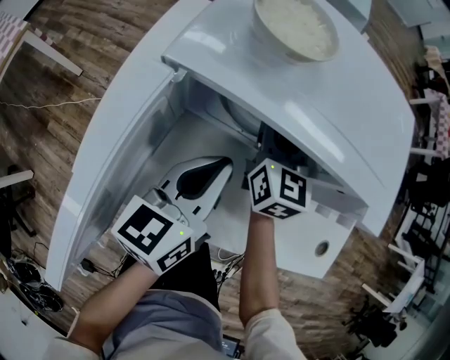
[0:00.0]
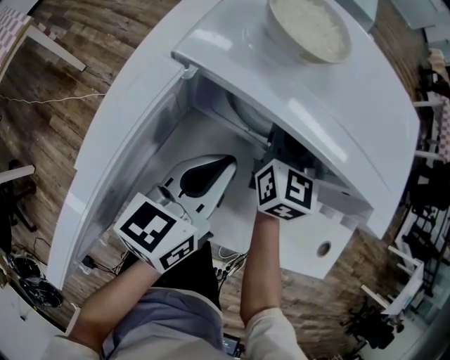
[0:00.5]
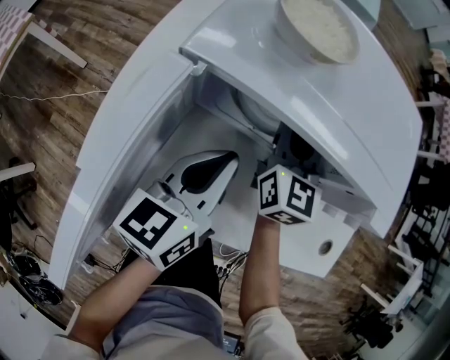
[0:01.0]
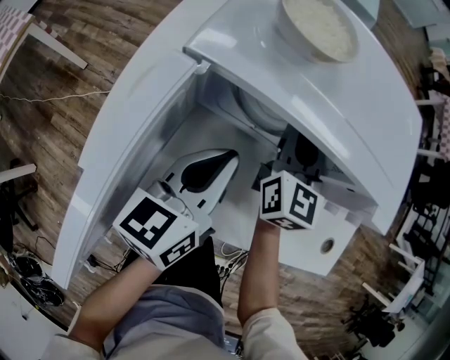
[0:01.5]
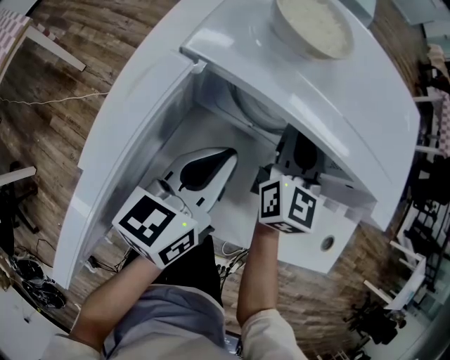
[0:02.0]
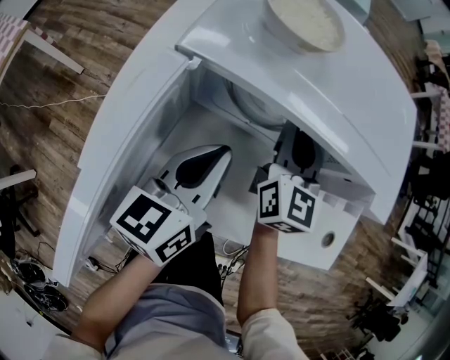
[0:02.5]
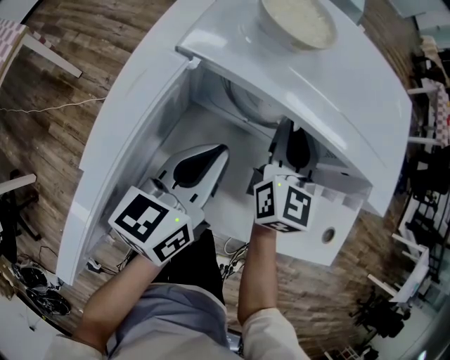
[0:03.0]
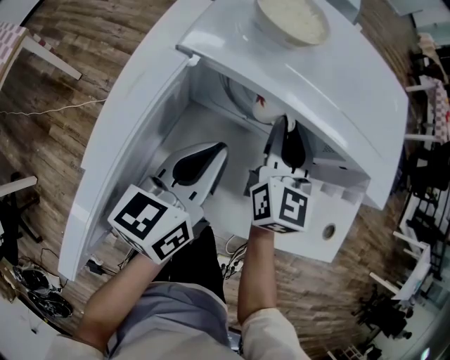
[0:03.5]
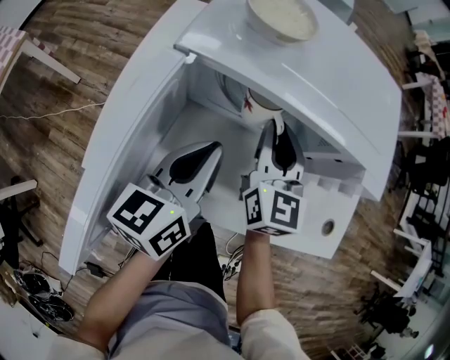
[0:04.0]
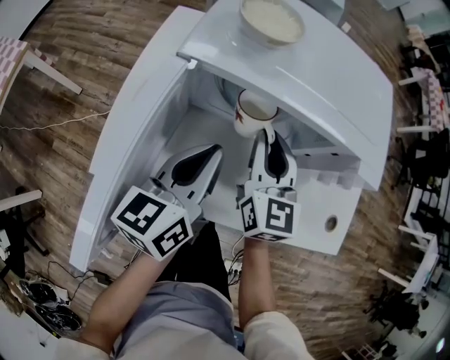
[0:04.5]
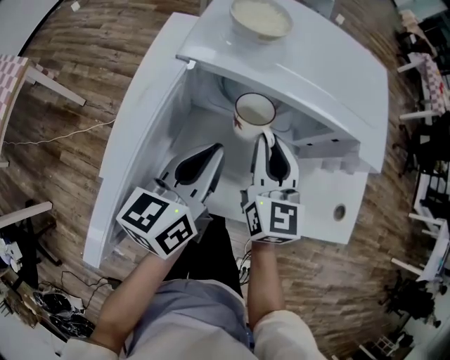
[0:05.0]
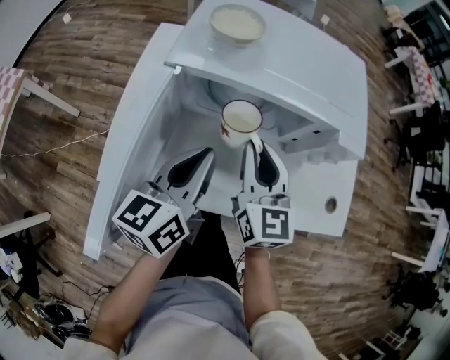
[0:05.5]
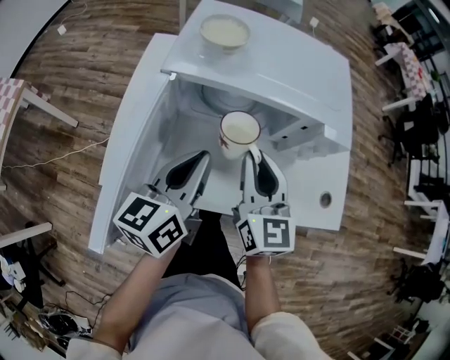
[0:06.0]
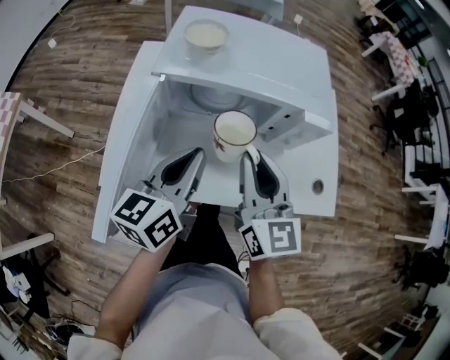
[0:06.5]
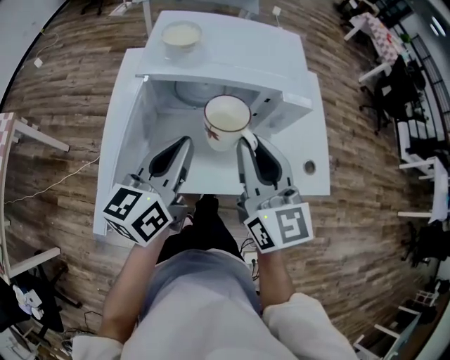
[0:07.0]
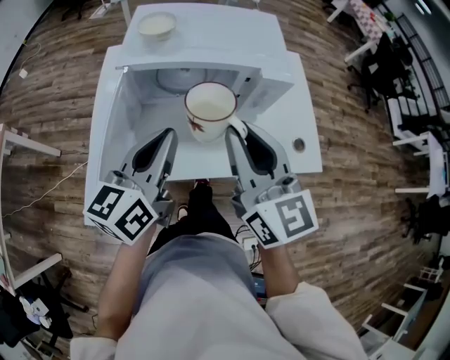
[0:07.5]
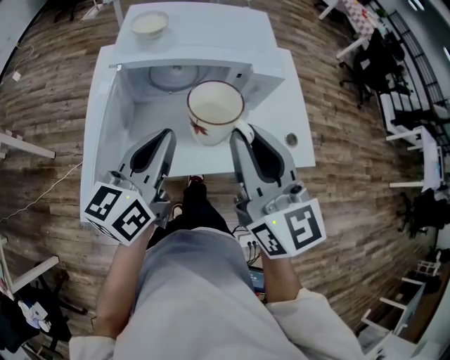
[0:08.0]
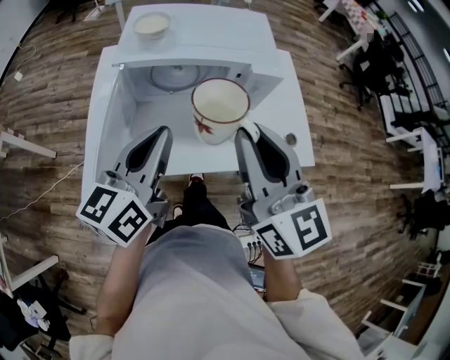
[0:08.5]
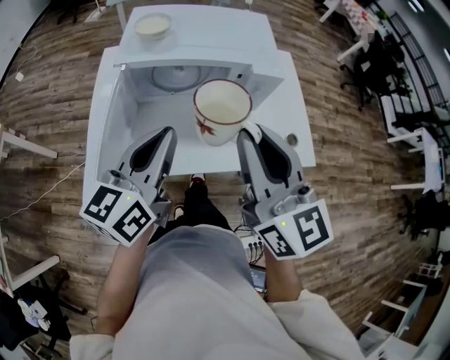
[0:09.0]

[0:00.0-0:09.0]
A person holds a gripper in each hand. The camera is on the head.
0:00.0 to 0:02.0: The grippers stay close to where they were, moving slightly.
0:02.0 to 0:04.5: The right gripper shifts roughly 10 cm backward.
0:04.5 to 0:07.0: The right gripper travels upward and backward by some 20 cm. The left gripper shifts about 15 cm upward and backward.
0:07.0 to 0:09.0: The left gripper changes place by approximately 5 cm. Meanwhile the right gripper goes some 10 cm upward and backward.

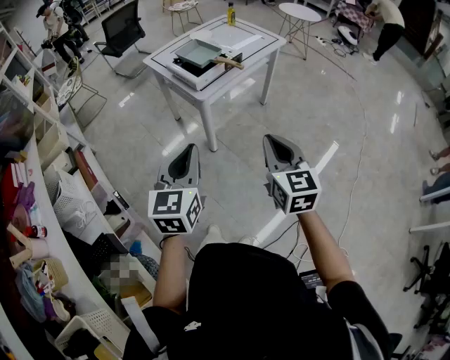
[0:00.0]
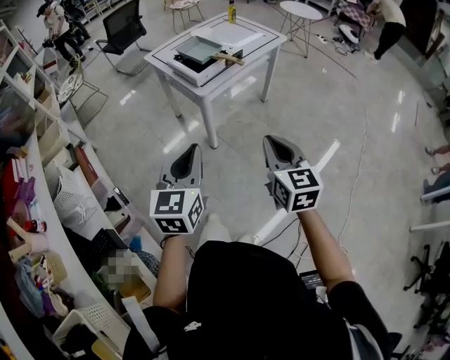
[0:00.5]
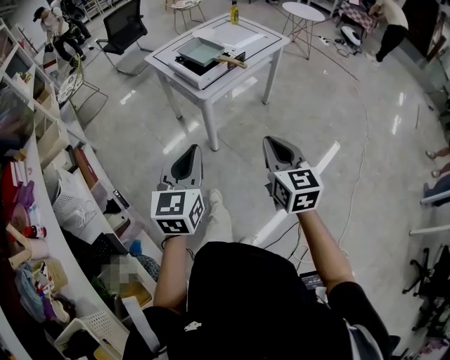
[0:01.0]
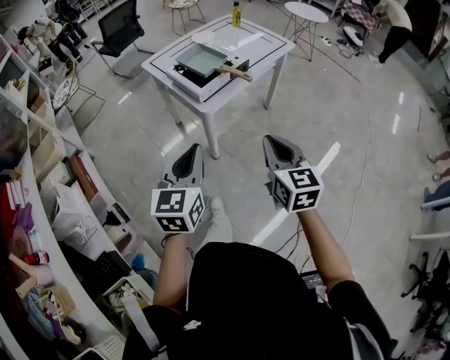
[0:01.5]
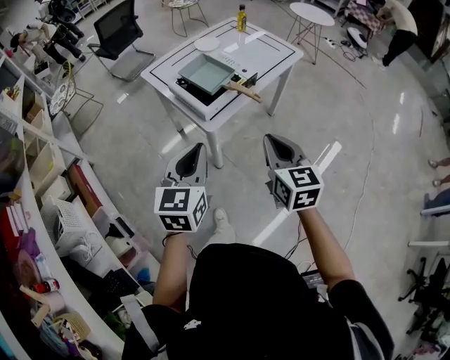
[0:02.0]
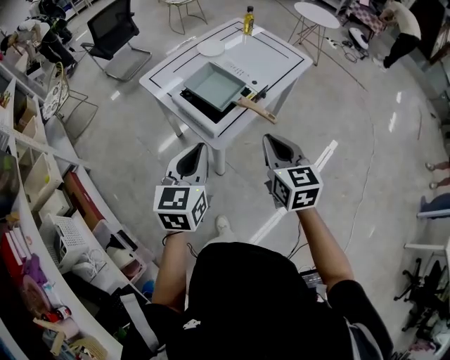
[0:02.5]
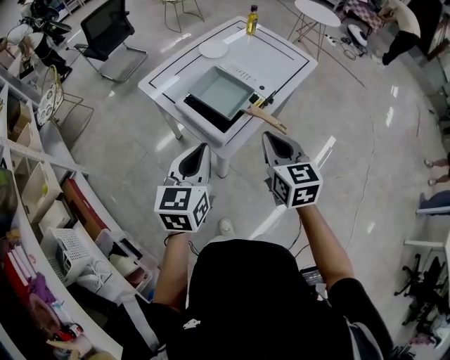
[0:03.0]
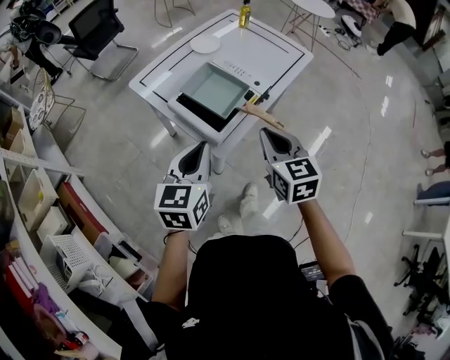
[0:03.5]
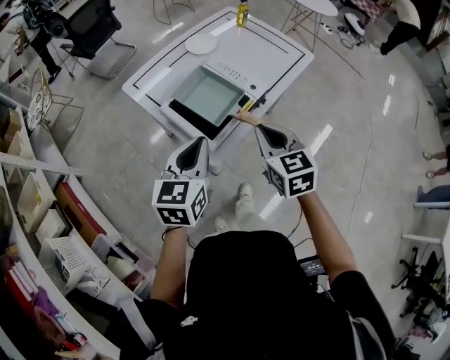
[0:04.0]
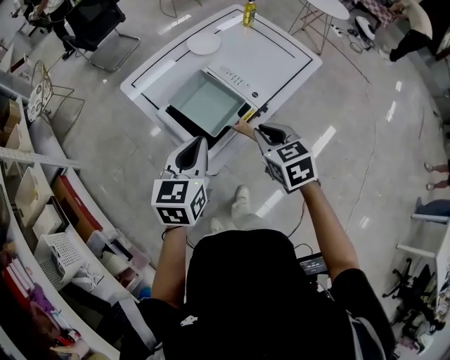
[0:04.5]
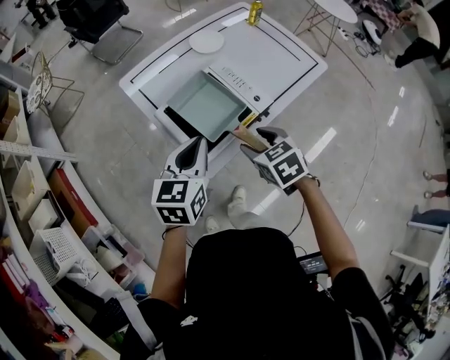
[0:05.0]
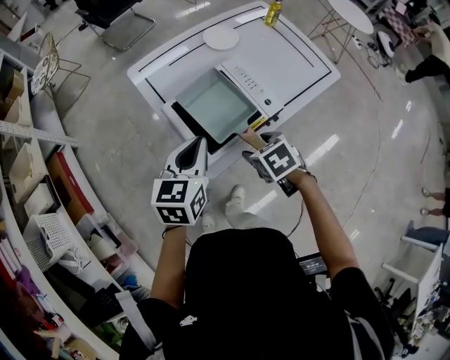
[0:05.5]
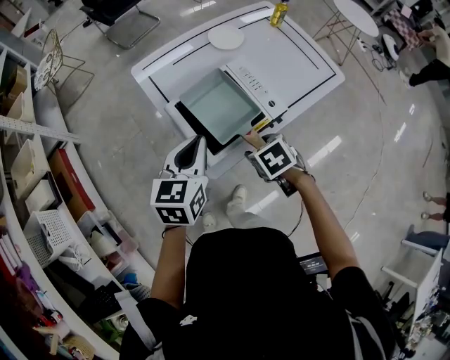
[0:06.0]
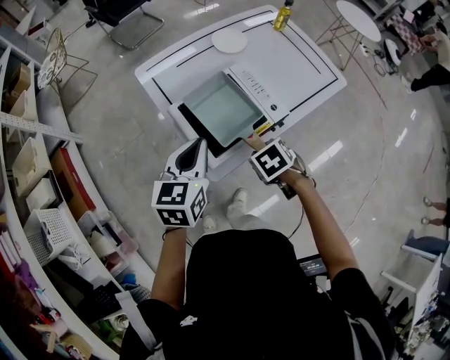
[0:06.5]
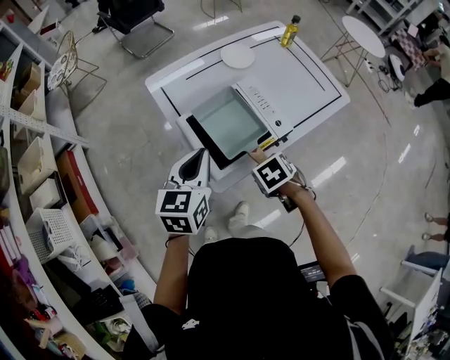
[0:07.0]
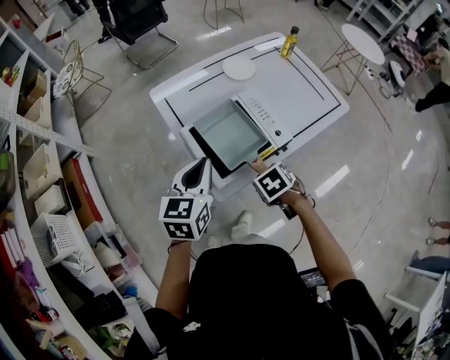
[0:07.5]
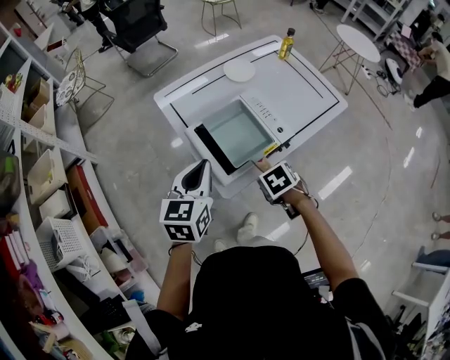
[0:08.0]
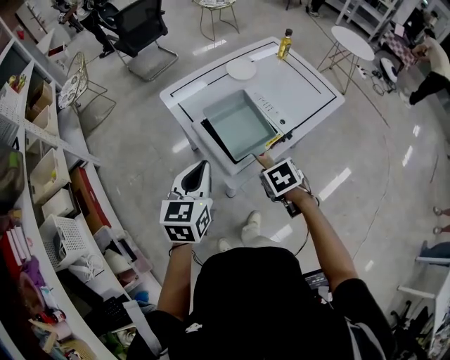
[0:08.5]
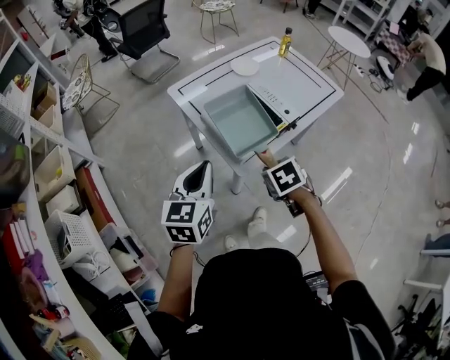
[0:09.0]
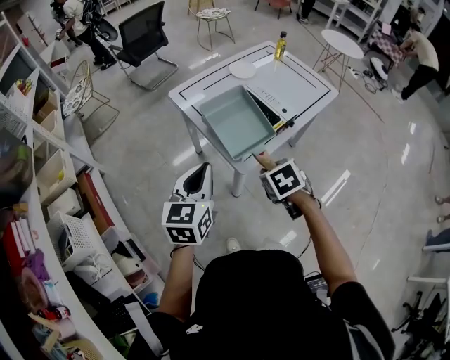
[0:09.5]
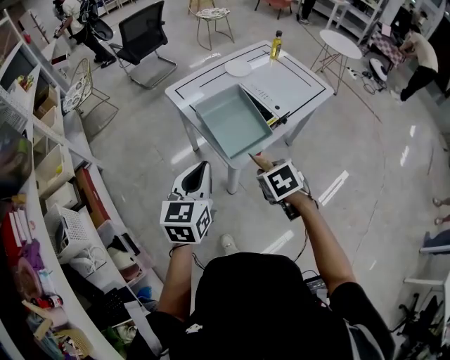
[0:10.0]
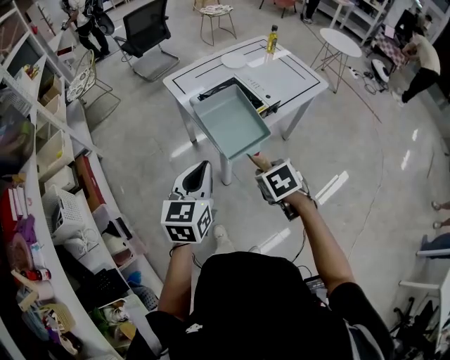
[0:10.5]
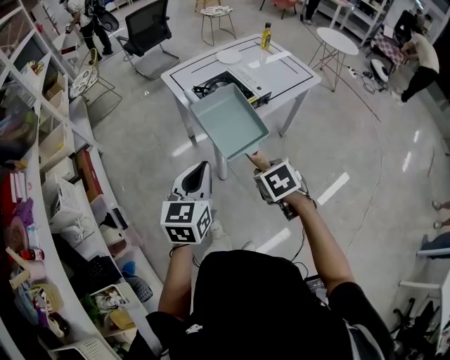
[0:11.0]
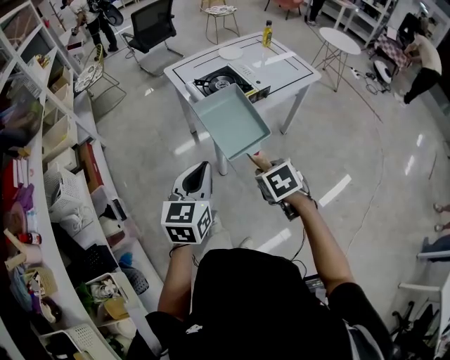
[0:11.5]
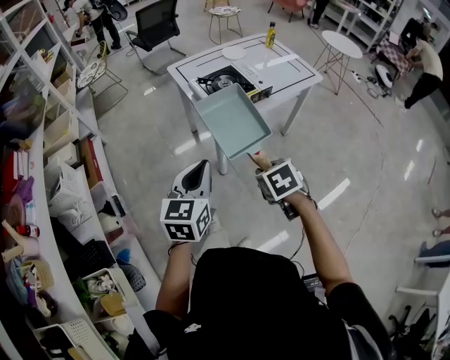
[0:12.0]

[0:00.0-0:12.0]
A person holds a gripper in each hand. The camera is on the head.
0:00.0 to 0:02.0: Both grippers travel together forward, approximately 25 cm.
0:02.0 to 0:04.0: Both grippers travel together forward, roughly 20 cm.
0:04.0 to 0:06.0: The left gripper goes approximately 10 cm forward. The right gripper shifts about 15 cm downward, tilts its fingers some 40 degrees downward, and opens up.
0:06.0 to 0:08.0: The left gripper changes place by roughly 5 cm. Meanwhile the right gripper closes.
0:08.0 to 0:10.0: The left gripper ends up some 20 cm from where it was. The right gripper ends up roughly 20 cm from where it was.
0:10.0 to 0:12.0: Both grippers travel together backward, approximately 20 cm.

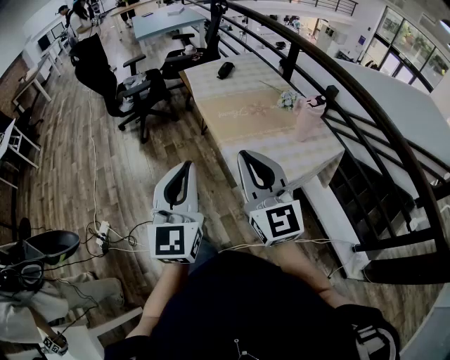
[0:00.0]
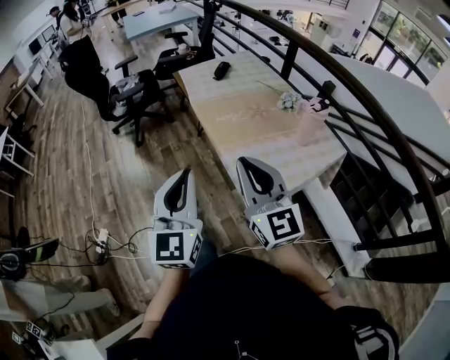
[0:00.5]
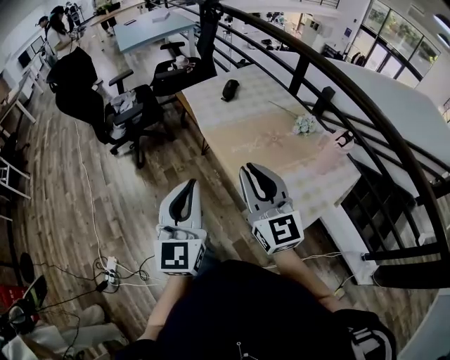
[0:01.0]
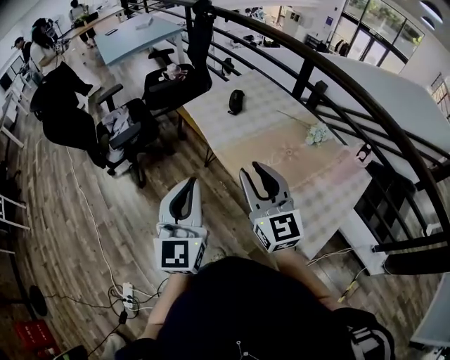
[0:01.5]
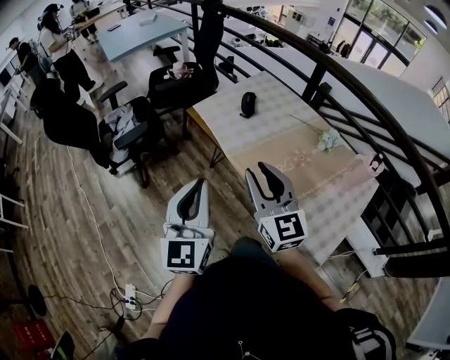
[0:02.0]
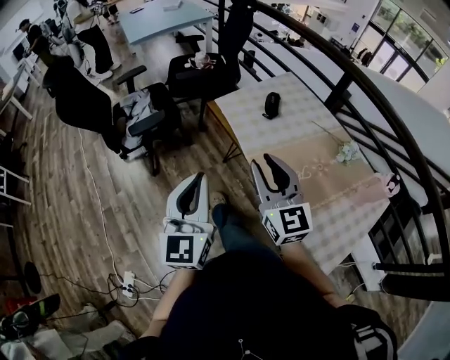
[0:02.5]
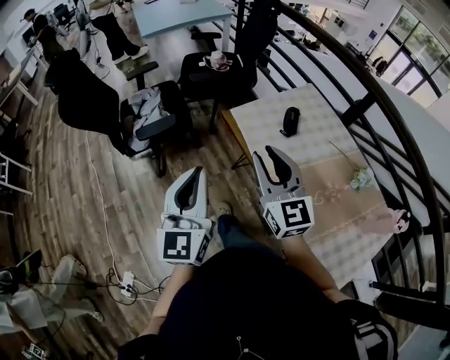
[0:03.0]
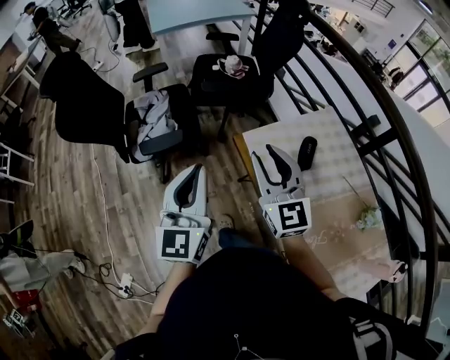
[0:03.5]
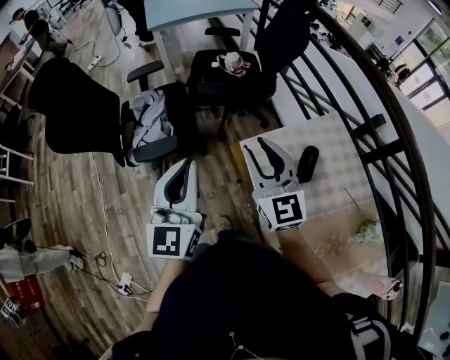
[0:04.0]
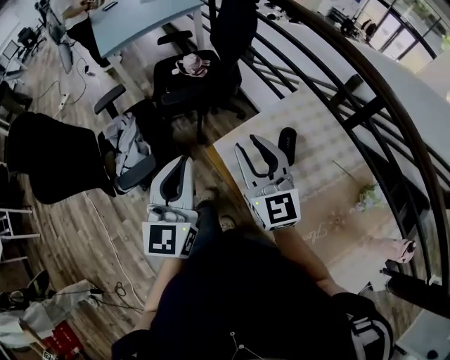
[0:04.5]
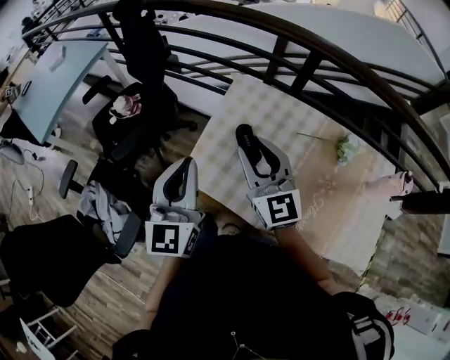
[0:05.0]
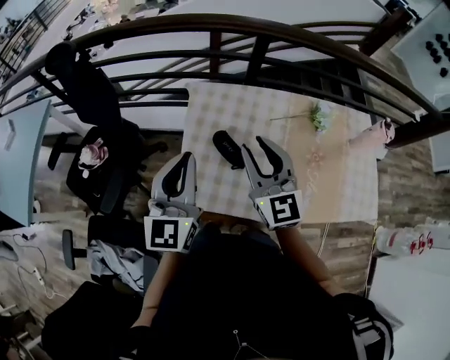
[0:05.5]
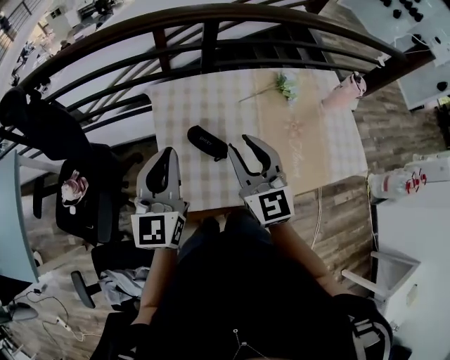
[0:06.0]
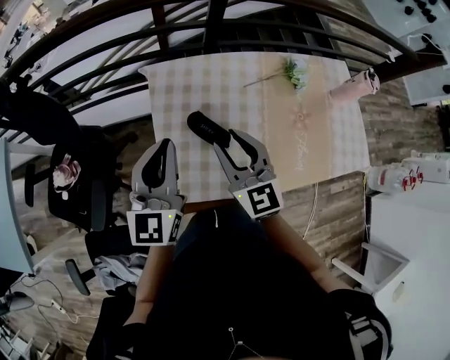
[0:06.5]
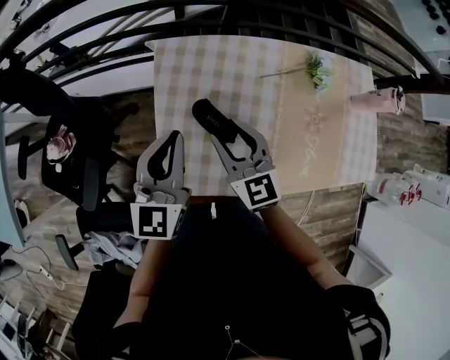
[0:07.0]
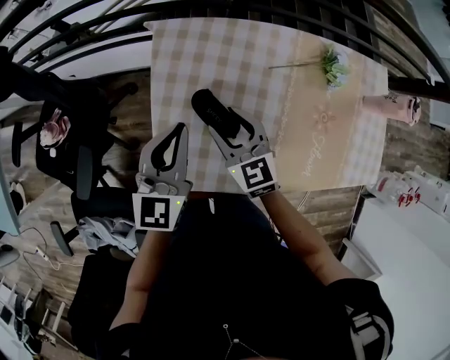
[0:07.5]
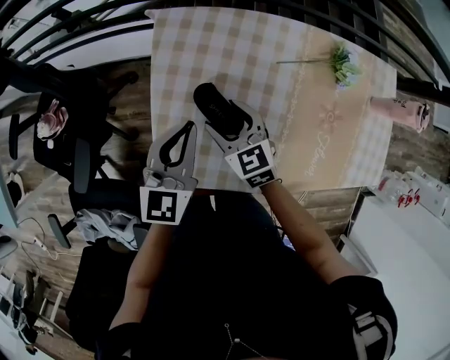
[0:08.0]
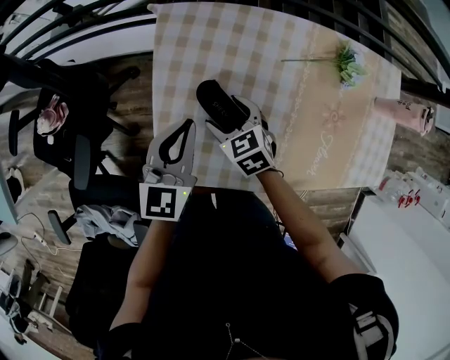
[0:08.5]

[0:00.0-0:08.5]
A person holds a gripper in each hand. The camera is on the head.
0:00.0 to 0:02.0: Both grippers are carried forward and to the left, about 40 cm.
0:02.0 to 0:04.0: Both grippers travel together forward, some 40 cm.
0:04.0 to 0:06.5: The right gripper ends up approximately 25 cm from where it was, and rotates about 70 degrees, while the left gripper ends up about 35 cm from where it was, and turns by roughly 80 degrees.
0:06.5 to 0:08.5: Both grippers travel together downward, some 20 cm. The right gripper points its fingers approximately 40 degrees further downward, and opens its fingers. Meanwhile the left gripper turns by some 20 degrees.
